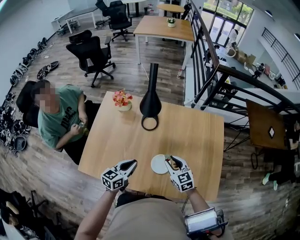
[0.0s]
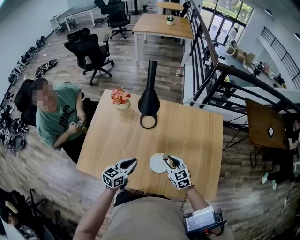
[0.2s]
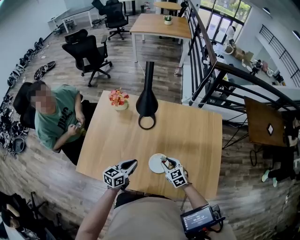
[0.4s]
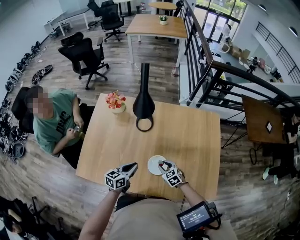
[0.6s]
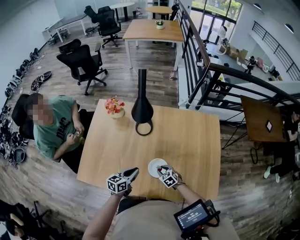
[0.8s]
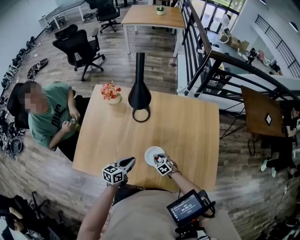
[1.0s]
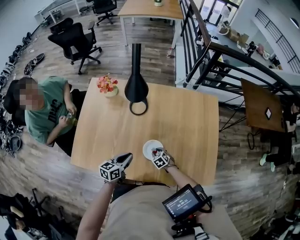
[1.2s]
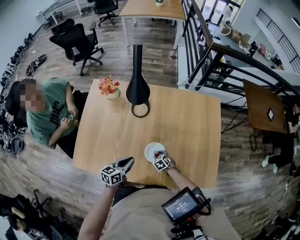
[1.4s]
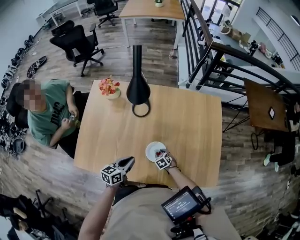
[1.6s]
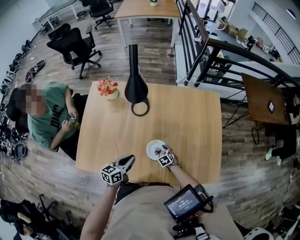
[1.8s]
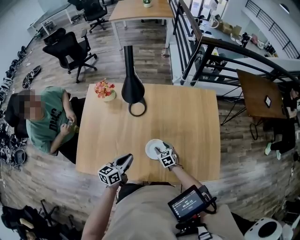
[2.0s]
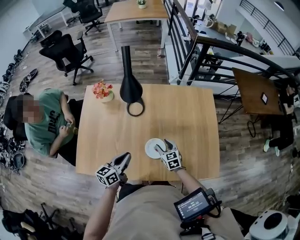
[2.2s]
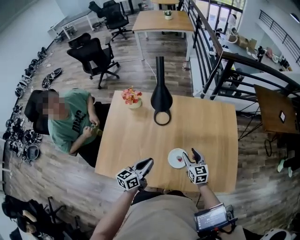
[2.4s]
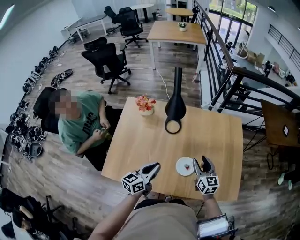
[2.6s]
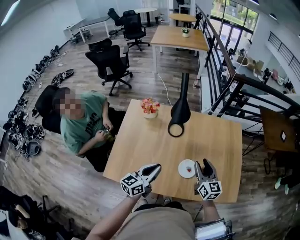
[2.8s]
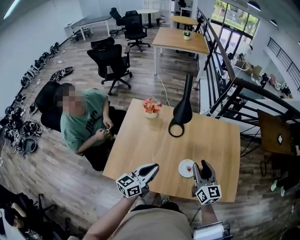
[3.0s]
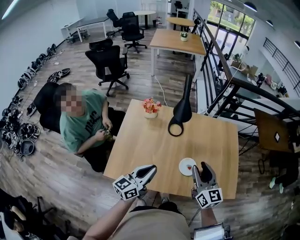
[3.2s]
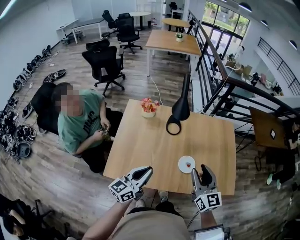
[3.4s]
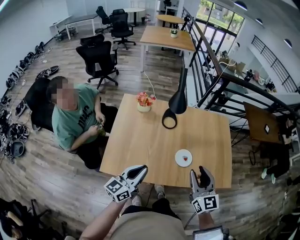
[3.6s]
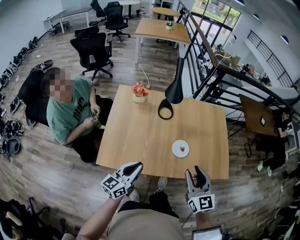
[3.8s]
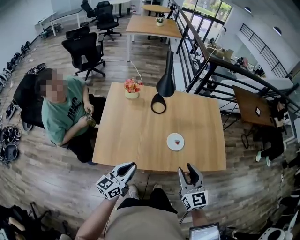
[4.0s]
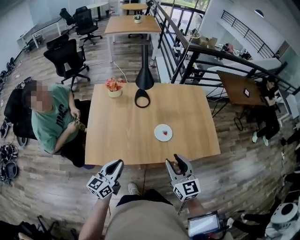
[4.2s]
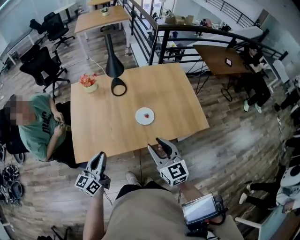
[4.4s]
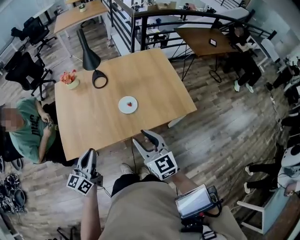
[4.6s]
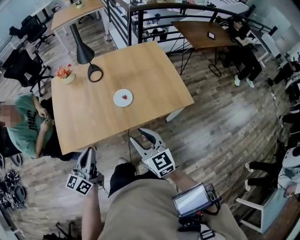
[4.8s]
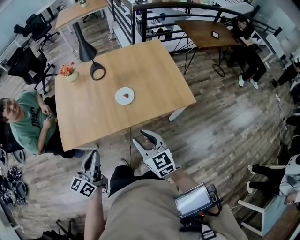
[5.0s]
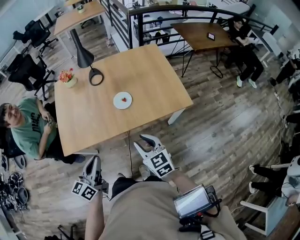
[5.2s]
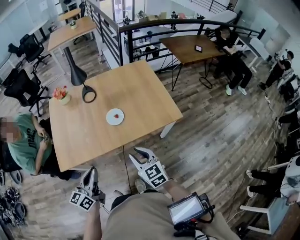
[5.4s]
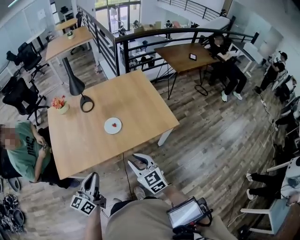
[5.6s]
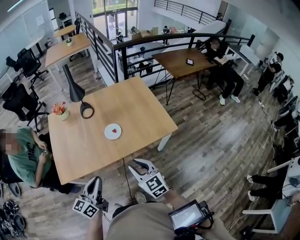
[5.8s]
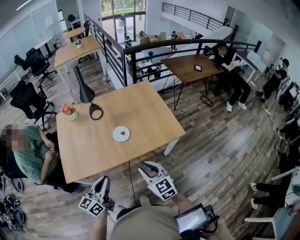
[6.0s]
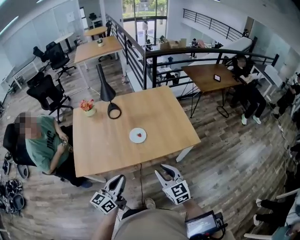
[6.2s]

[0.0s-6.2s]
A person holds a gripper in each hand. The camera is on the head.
0.0s to 1.6s: The right gripper moves downward, some 30 cm, and tilts its fingers approximately 40 degrees downward, while the left gripper travels downward by some 10 cm.
1.6s to 3.2s: The right gripper shifts roughly 50 cm upward, and angles its fingers upward, by roughly 60 degrees. Meanwhile the left gripper heads upward and to the left, covering roughly 25 cm, and turns by roughly 30 degrees.
3.2s to 4.6s: The grippers both shift backward by some 20 cm.
4.6s to 6.2s: The right gripper heads backward and to the right, covering approximately 15 cm, while the left gripper heads to the right and backward, covering roughly 15 cm.

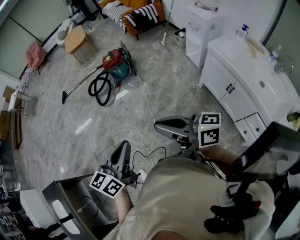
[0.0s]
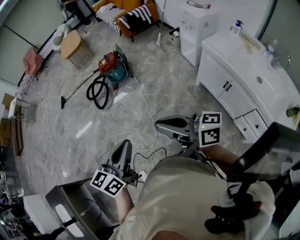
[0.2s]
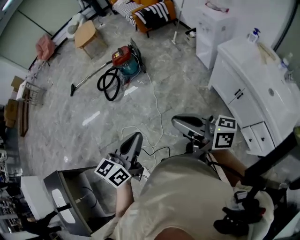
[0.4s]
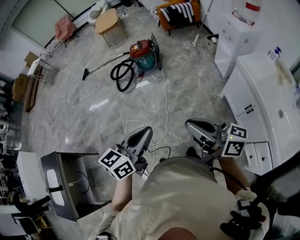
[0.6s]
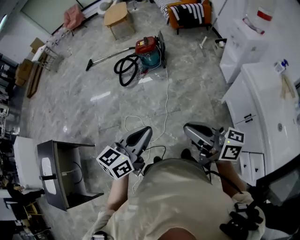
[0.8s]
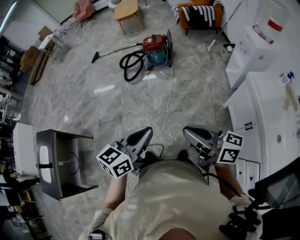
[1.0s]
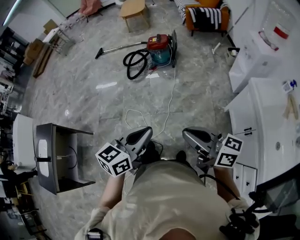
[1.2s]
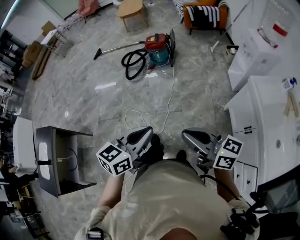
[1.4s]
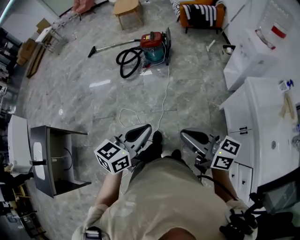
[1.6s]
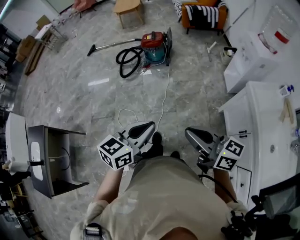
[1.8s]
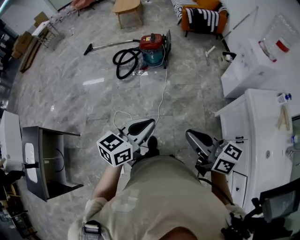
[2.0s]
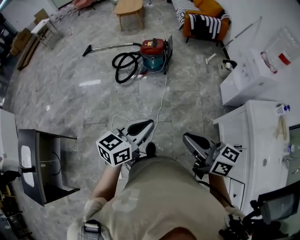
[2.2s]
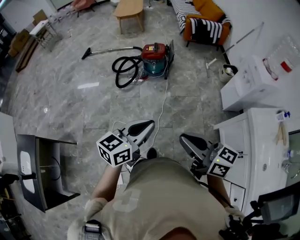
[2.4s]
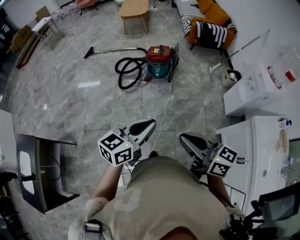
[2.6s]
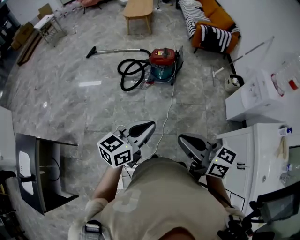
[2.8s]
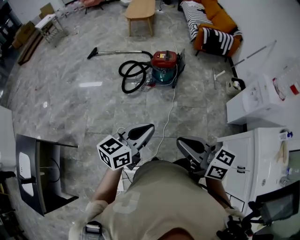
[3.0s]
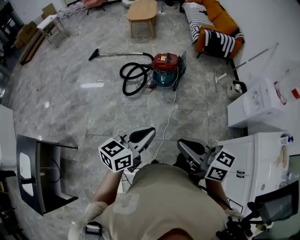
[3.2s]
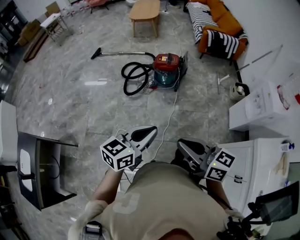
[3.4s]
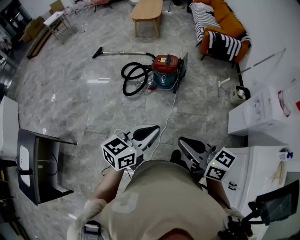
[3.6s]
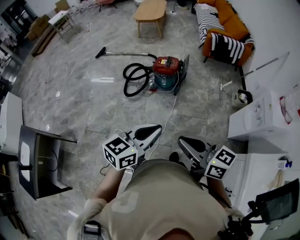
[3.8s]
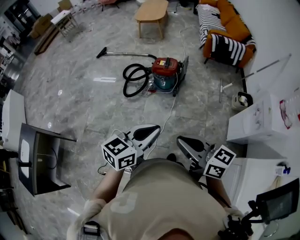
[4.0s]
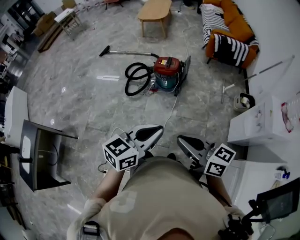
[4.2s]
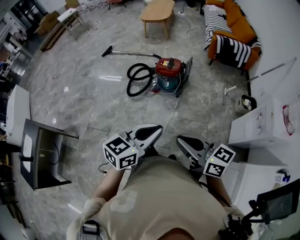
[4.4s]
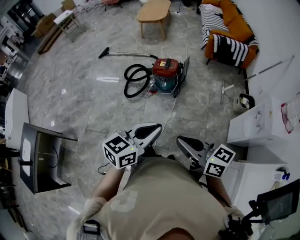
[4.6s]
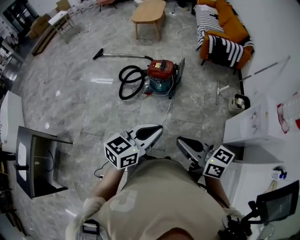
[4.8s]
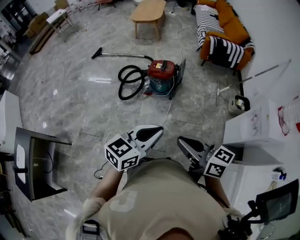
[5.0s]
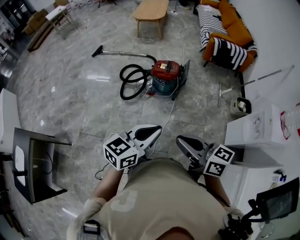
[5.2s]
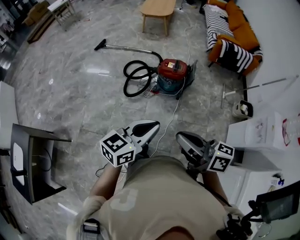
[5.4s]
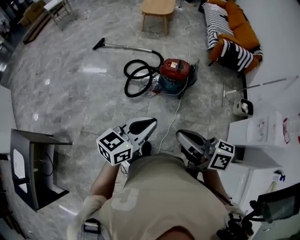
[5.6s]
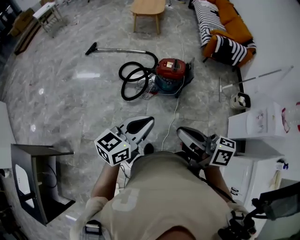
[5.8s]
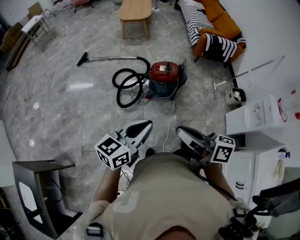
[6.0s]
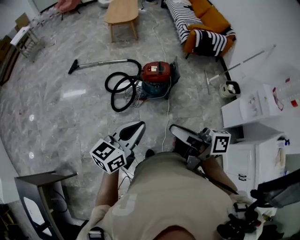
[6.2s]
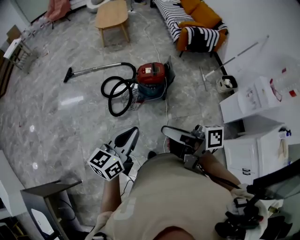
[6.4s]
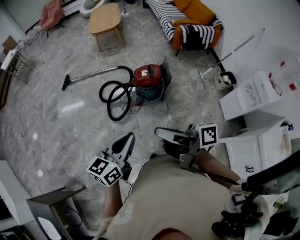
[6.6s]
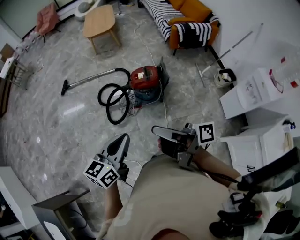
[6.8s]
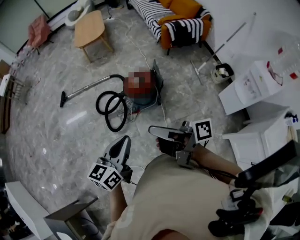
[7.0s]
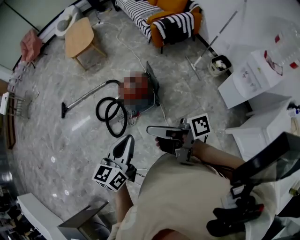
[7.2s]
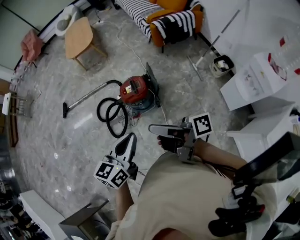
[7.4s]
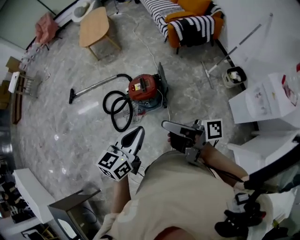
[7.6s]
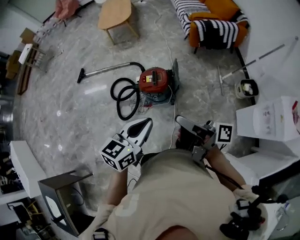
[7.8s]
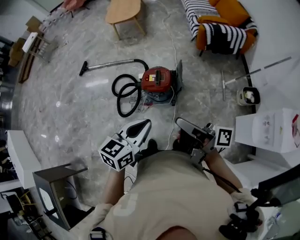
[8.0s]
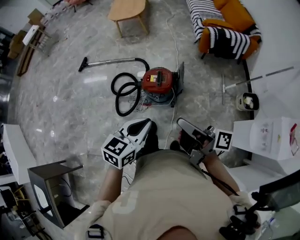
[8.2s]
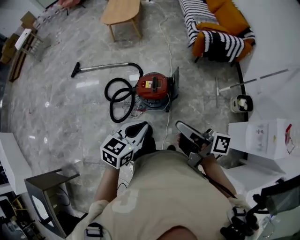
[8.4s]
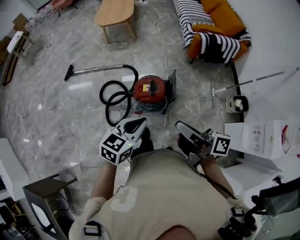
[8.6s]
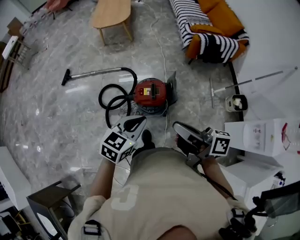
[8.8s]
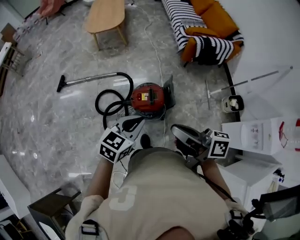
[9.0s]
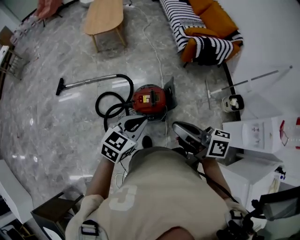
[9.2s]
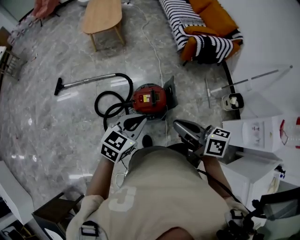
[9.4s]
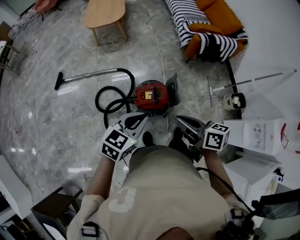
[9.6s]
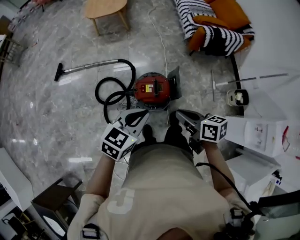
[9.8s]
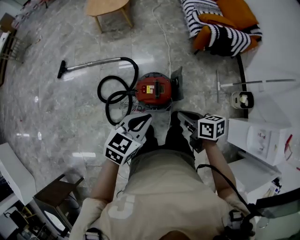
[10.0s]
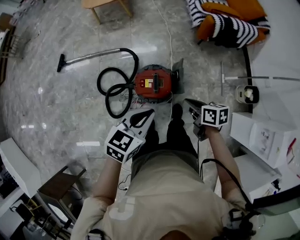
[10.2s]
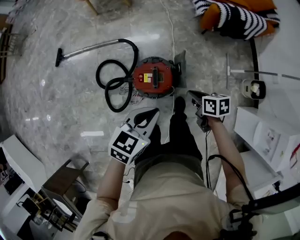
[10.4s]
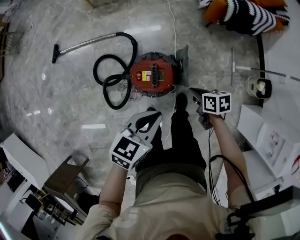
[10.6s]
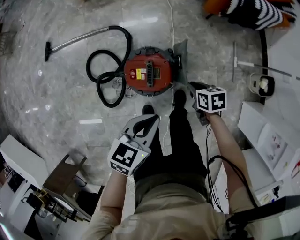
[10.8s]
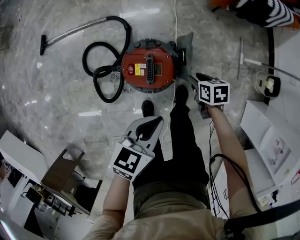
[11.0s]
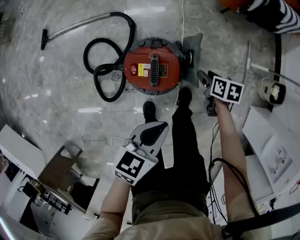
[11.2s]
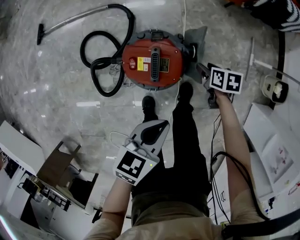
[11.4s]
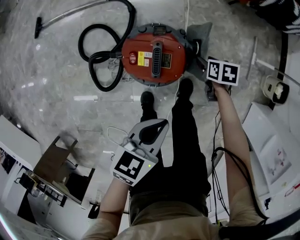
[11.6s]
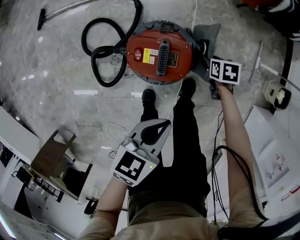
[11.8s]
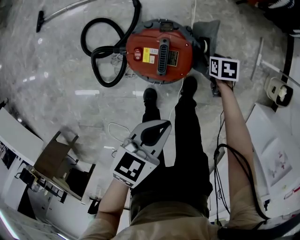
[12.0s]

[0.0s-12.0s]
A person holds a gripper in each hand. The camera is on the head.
0.0s to 1.6s: The two grippers go some 10 cm to the right.
1.6s to 3.0s: The two grippers go about 30 cm forward and to the left.
3.0s to 4.4s: The right gripper travels to the right and forward by roughly 25 cm. The left gripper moves to the right, roughly 25 cm.
4.4s to 6.0s: The two grippers go some 30 cm to the left and forward. The right gripper turns by approximately 30 degrees.
6.0s to 7.6s: The two grippers go about 30 cm to the right and forward. The right gripper turns by some 30 degrees.
7.6s to 9.0s: Both grippers move forward and to the left, some 20 cm. The right gripper rotates some 20 degrees.
9.0s to 10.4s: The right gripper moves downward and forward, approximately 40 cm, and points its fingers some 50 degrees further downward. Meanwhile the left gripper is displaced forward, downward and to the right by about 20 cm.
10.4s to 12.0s: The right gripper shifts some 35 cm downward, swivels some 30 degrees, and opens, while the left gripper heads downward, covering some 25 cm, and swivels roughly 20 degrees.

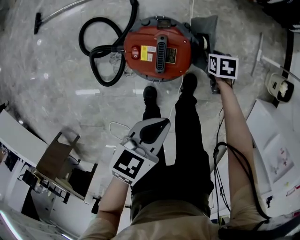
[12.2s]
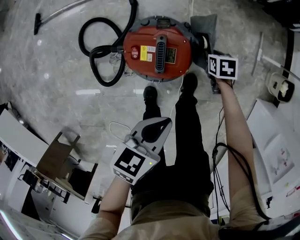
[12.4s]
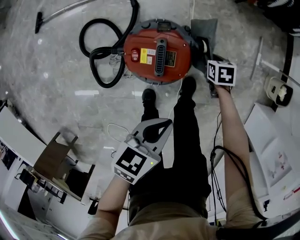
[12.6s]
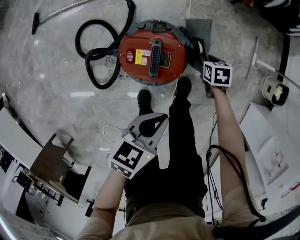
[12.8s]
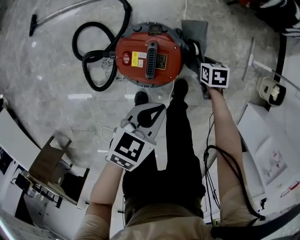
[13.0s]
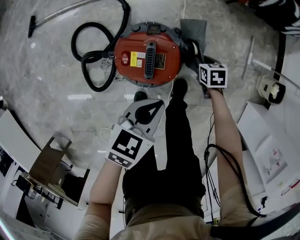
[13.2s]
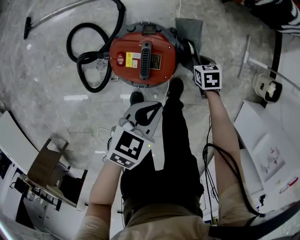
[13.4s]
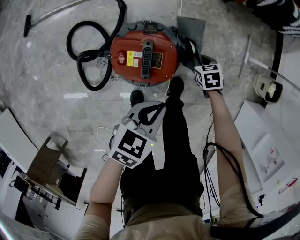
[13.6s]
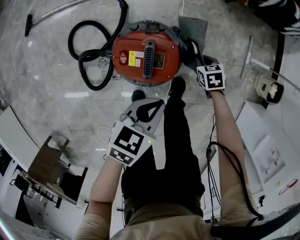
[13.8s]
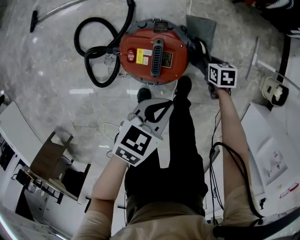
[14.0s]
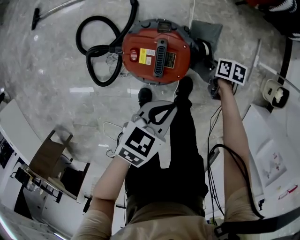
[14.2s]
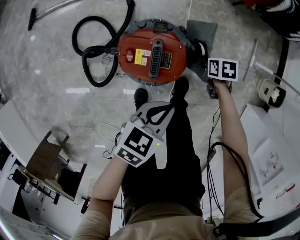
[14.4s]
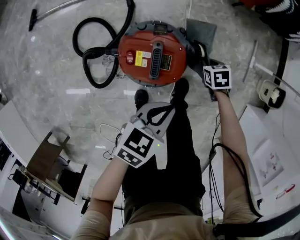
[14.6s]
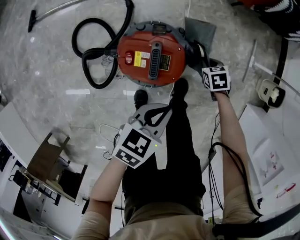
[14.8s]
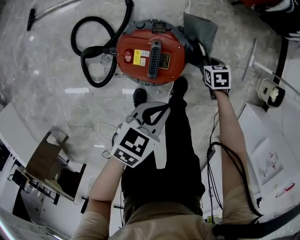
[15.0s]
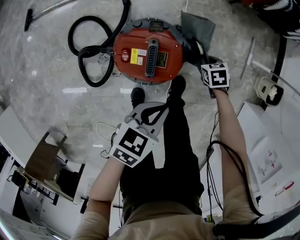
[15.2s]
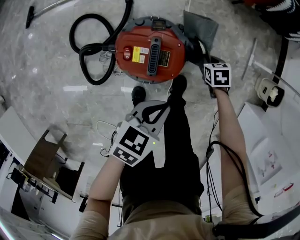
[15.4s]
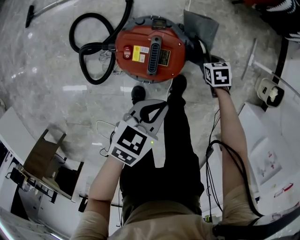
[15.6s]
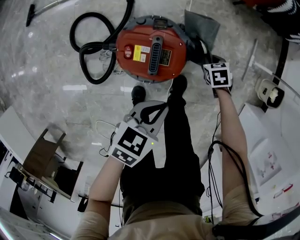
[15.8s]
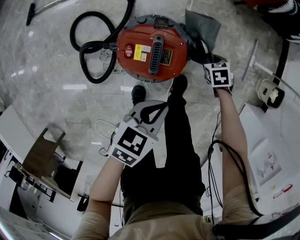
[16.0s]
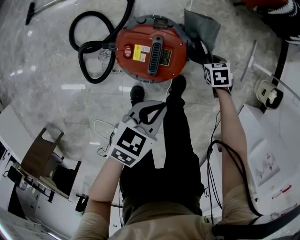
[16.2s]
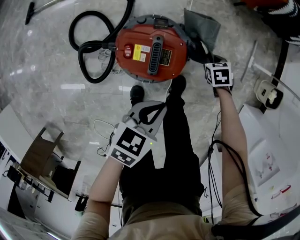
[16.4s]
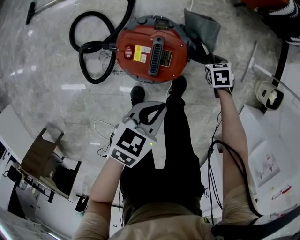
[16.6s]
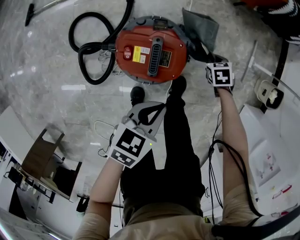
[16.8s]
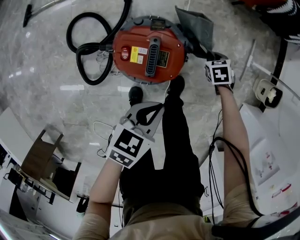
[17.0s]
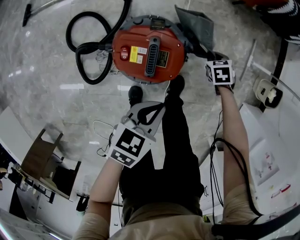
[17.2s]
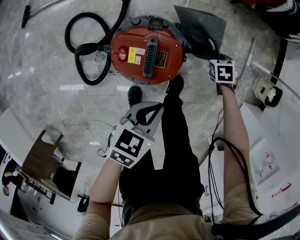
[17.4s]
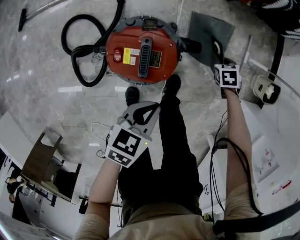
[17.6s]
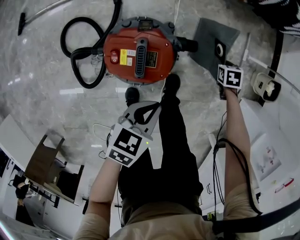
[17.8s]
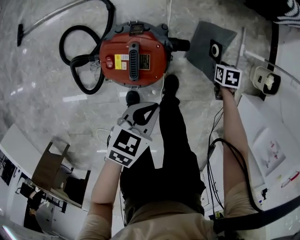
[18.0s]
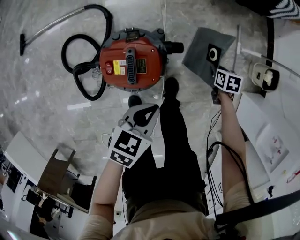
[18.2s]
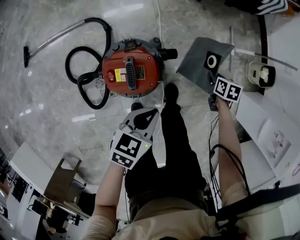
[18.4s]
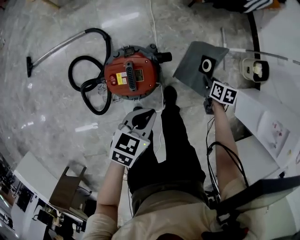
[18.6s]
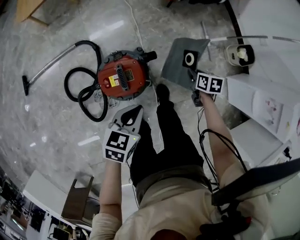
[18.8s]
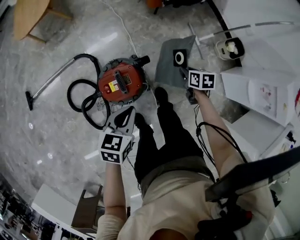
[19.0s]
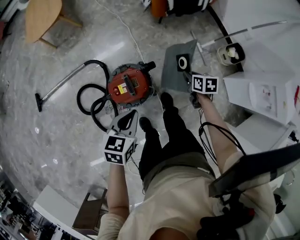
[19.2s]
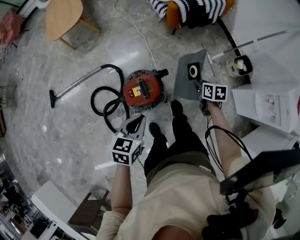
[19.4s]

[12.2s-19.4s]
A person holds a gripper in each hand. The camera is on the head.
12.2s to 13.6s: The right gripper closes up. Meanwhile the left gripper shifts approximately 5 cm downward.
15.0s to 16.6s: The grippers make only small movements.
16.6s to 18.0s: The right gripper ends up about 10 cm from where it was, and changes its angle by about 20 degrees.
18.0s to 19.4s: Both grippers move upward, roughly 30 cm. The right gripper changes its angle by approximately 30 degrees.
